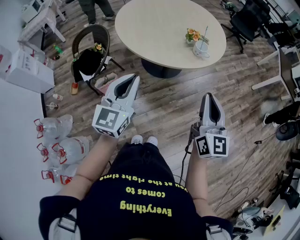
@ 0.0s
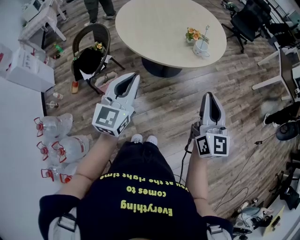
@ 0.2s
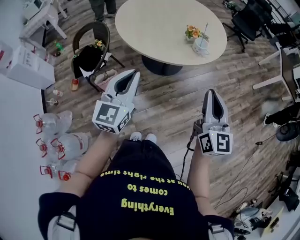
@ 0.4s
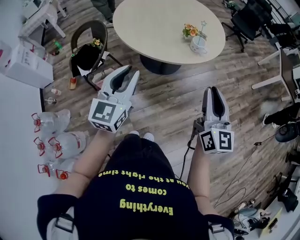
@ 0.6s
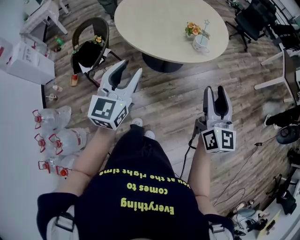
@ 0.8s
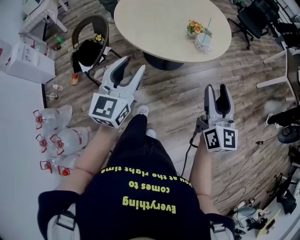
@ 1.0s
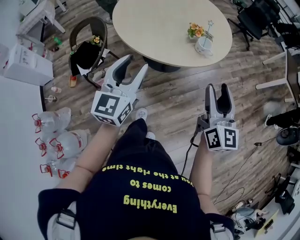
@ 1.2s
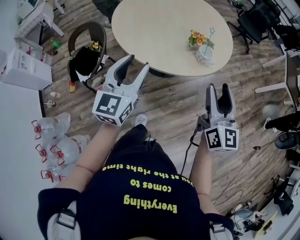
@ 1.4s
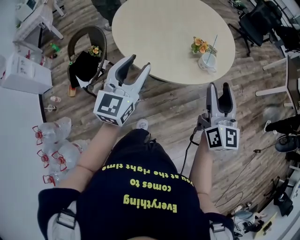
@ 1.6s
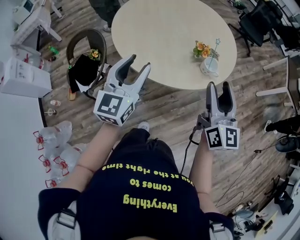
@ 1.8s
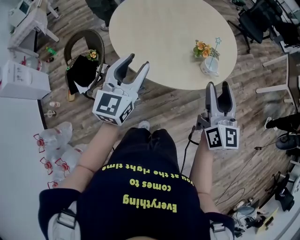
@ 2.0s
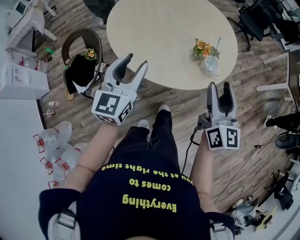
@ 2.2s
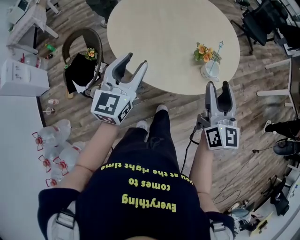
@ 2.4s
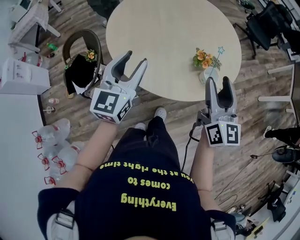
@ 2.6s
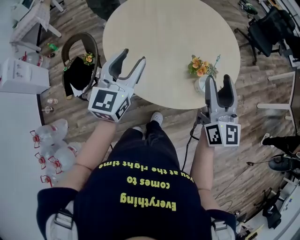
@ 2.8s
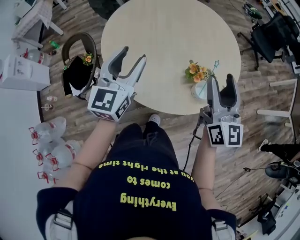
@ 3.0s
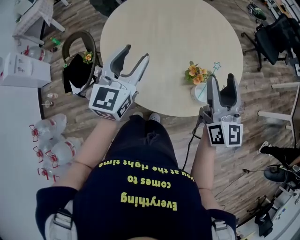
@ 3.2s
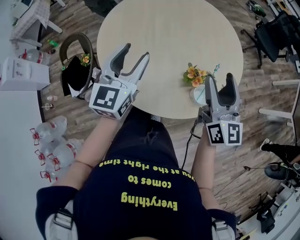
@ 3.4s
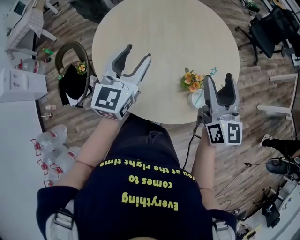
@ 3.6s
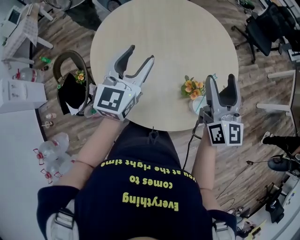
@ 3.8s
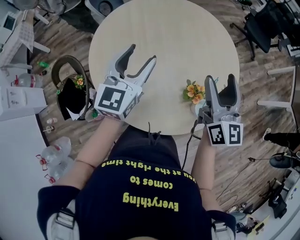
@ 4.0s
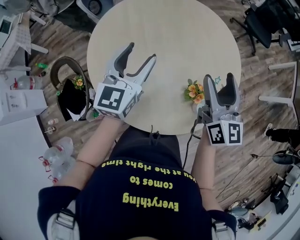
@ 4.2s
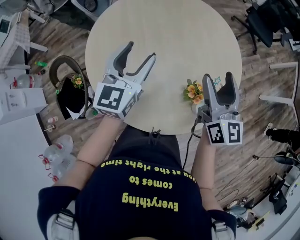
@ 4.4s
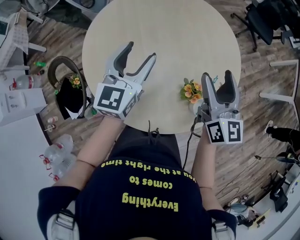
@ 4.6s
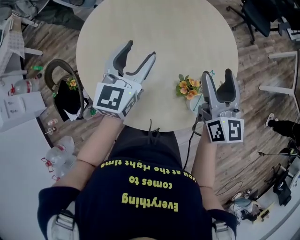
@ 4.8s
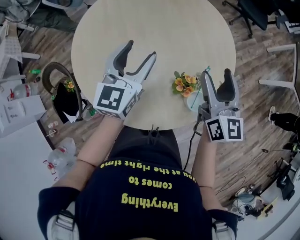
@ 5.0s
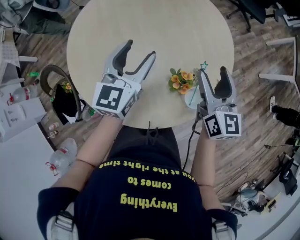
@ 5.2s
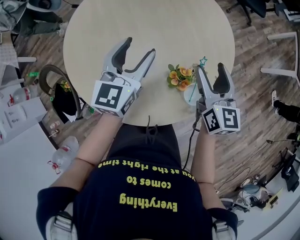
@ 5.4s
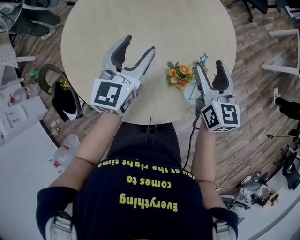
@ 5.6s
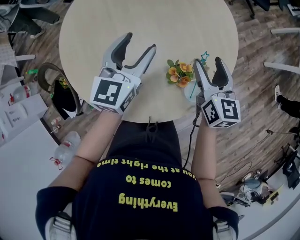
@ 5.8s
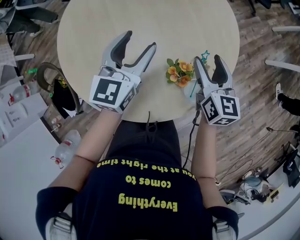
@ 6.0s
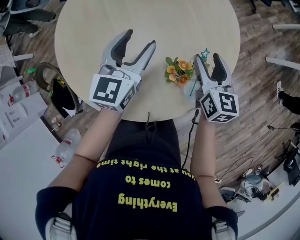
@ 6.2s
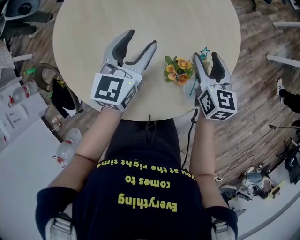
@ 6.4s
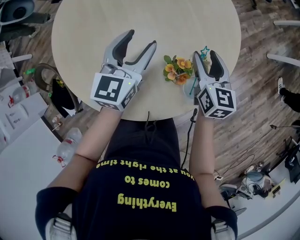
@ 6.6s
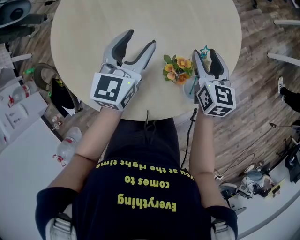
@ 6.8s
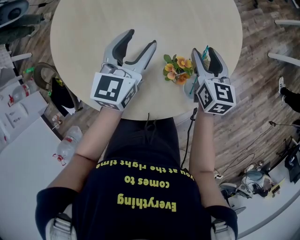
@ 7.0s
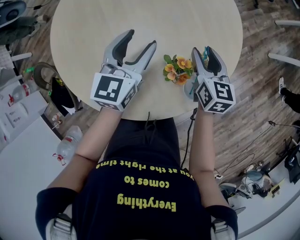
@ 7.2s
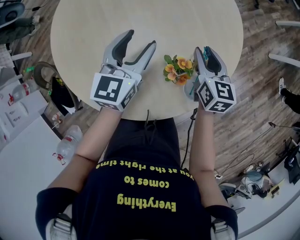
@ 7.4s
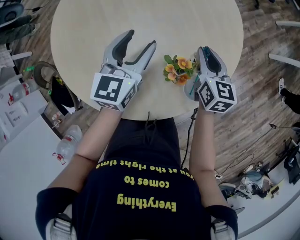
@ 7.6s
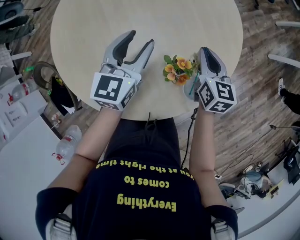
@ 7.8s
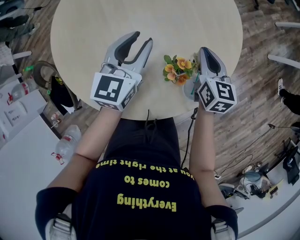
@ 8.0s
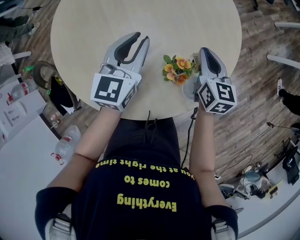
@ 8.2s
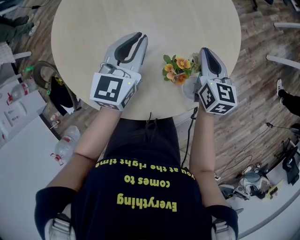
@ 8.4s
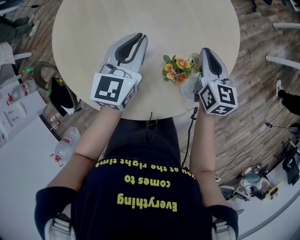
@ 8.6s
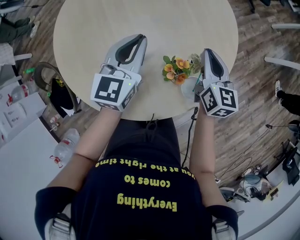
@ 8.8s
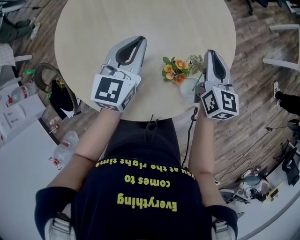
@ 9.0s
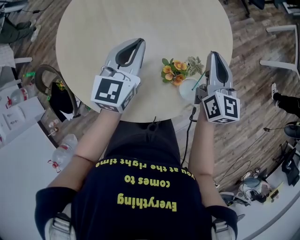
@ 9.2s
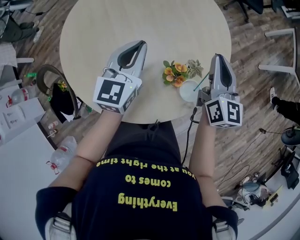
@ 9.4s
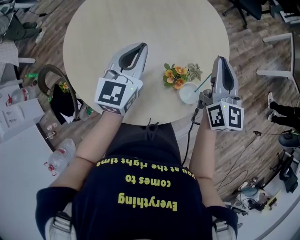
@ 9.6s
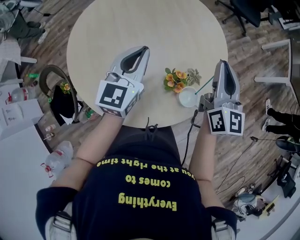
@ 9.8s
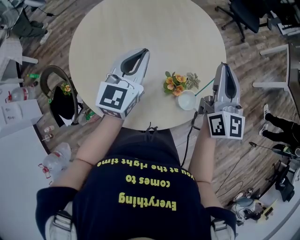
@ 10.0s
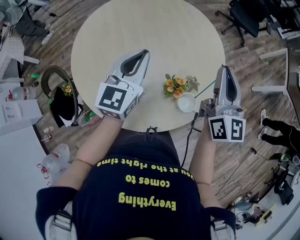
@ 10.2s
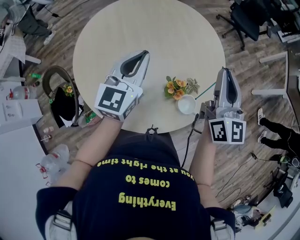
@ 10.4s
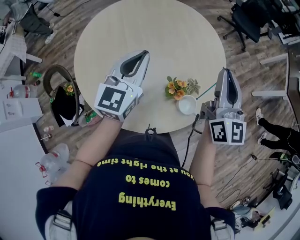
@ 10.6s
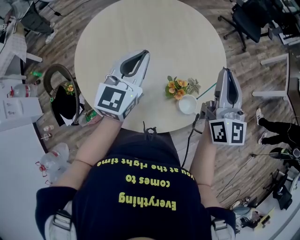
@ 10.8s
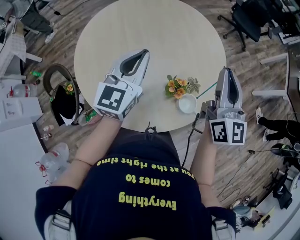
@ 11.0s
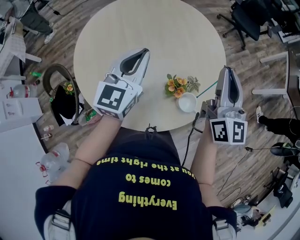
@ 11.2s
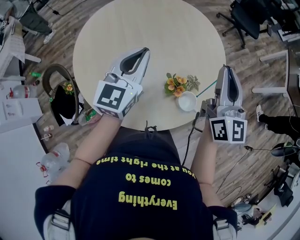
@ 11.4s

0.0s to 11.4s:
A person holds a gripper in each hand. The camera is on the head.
0.0s to 1.4s: Both grippers travel together forward, about 15 cm. The left gripper opens, while the right gripper opens its fingers.
1.4s to 2.8s: Both grippers travel together forward, some 25 cm.
2.8s to 4.2s: The two grippers go approximately 20 cm forward.
4.2s to 5.6s: The left gripper moves to the right and downward, approximately 15 cm; the right gripper goes some 15 cm downward and to the right.
5.6s to 7.2s: The right gripper heads downward, covering roughly 10 cm. The left gripper heads downward, covering some 5 cm.
7.2s to 8.6s: The right gripper closes up, while the left gripper closes up.
8.6s to 10.0s: The right gripper travels upward by approximately 20 cm, and rotates about 30 degrees. The left gripper heads upward, covering about 10 cm.
10.0s to 11.4s: The grippers move only a little.

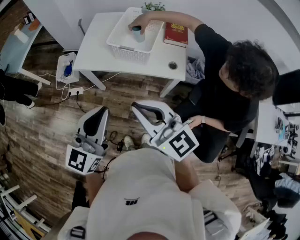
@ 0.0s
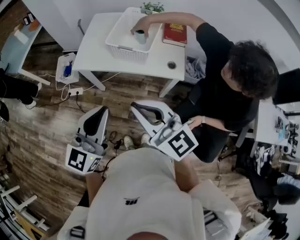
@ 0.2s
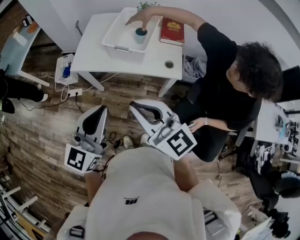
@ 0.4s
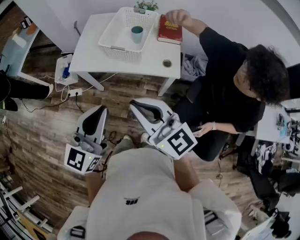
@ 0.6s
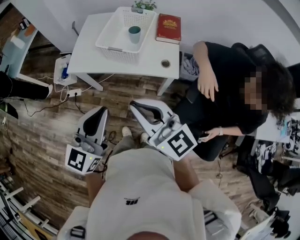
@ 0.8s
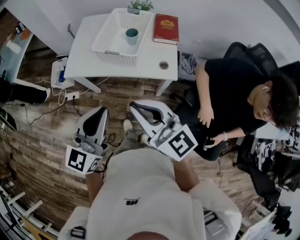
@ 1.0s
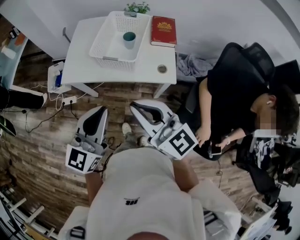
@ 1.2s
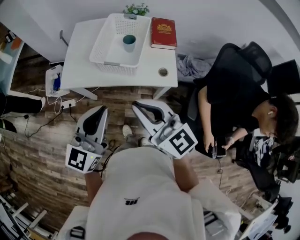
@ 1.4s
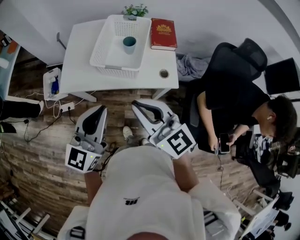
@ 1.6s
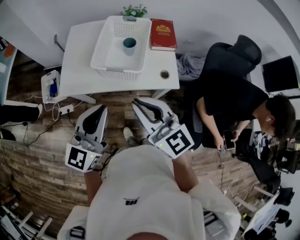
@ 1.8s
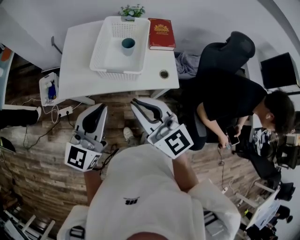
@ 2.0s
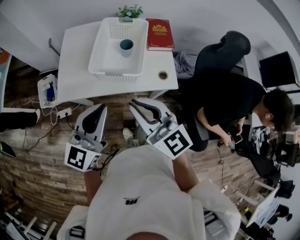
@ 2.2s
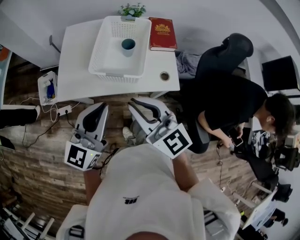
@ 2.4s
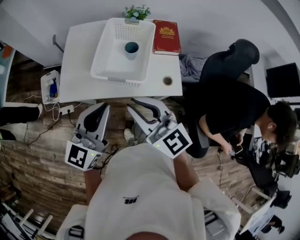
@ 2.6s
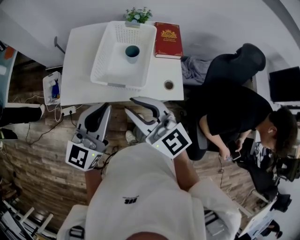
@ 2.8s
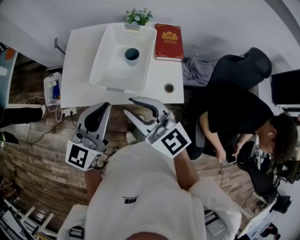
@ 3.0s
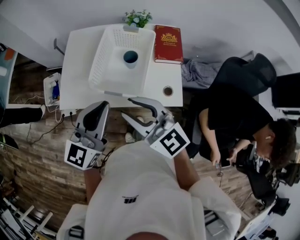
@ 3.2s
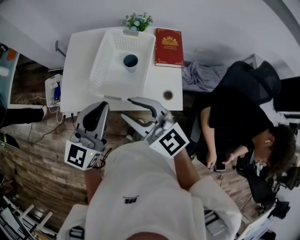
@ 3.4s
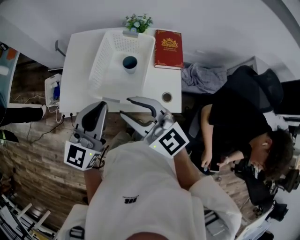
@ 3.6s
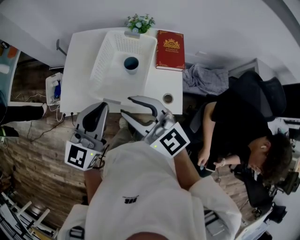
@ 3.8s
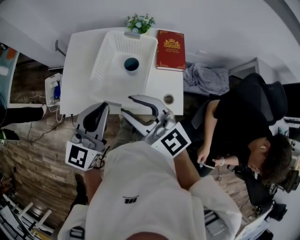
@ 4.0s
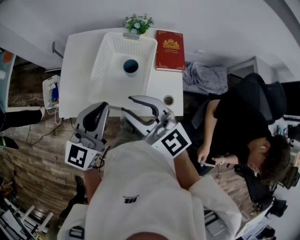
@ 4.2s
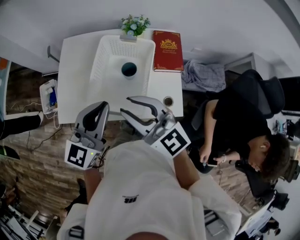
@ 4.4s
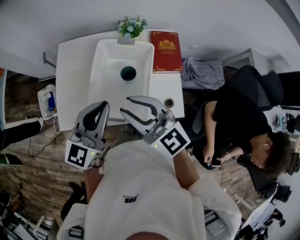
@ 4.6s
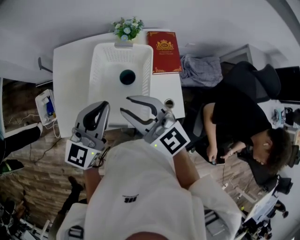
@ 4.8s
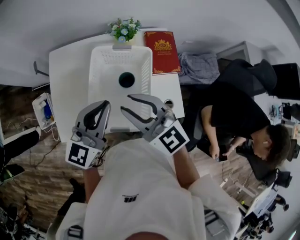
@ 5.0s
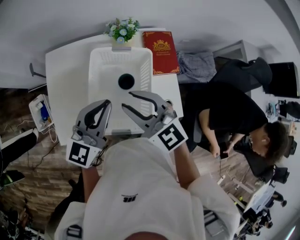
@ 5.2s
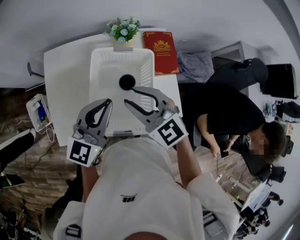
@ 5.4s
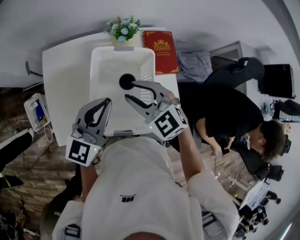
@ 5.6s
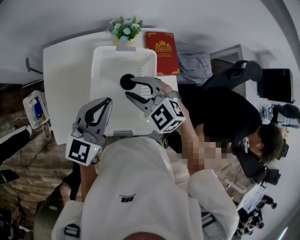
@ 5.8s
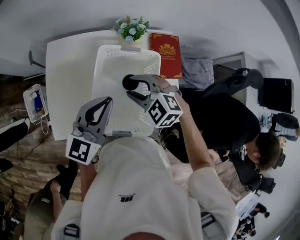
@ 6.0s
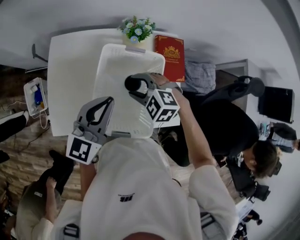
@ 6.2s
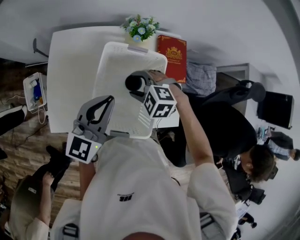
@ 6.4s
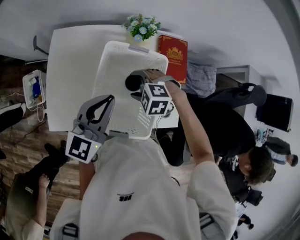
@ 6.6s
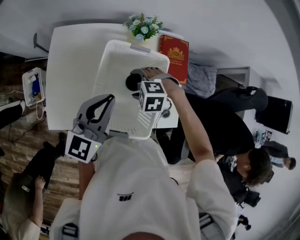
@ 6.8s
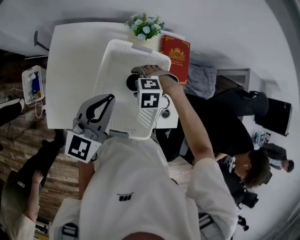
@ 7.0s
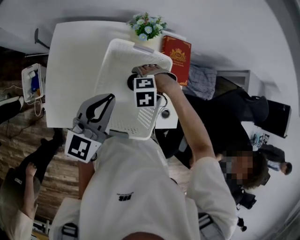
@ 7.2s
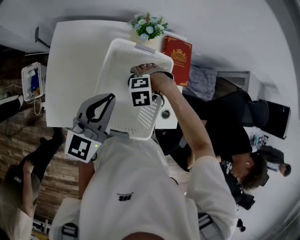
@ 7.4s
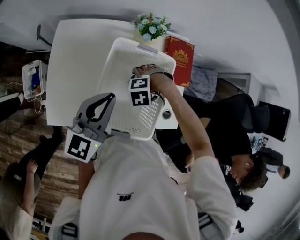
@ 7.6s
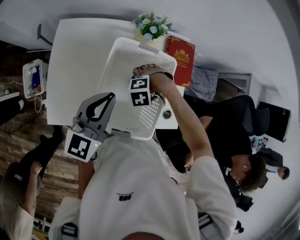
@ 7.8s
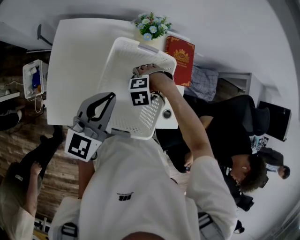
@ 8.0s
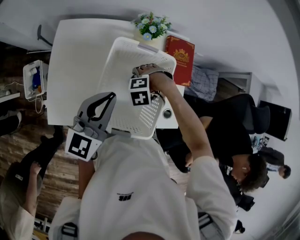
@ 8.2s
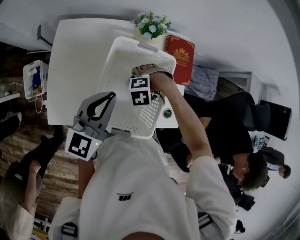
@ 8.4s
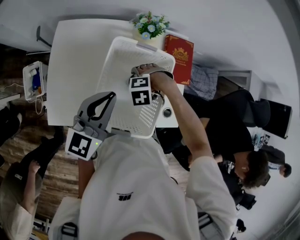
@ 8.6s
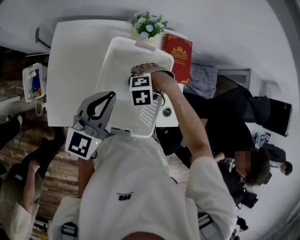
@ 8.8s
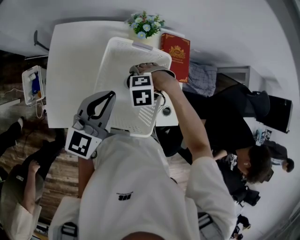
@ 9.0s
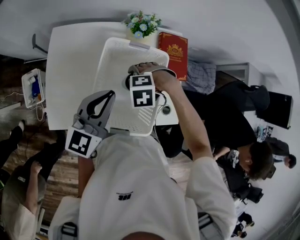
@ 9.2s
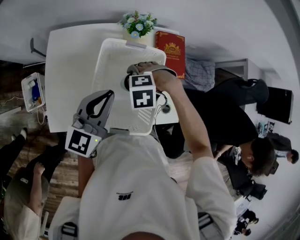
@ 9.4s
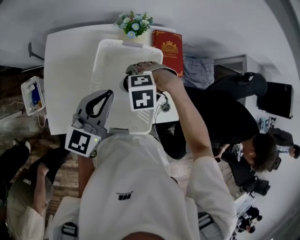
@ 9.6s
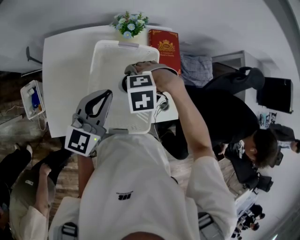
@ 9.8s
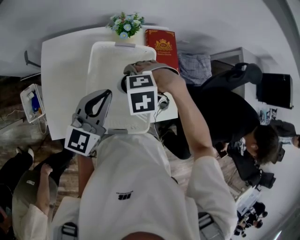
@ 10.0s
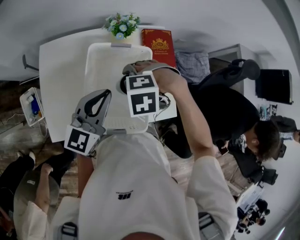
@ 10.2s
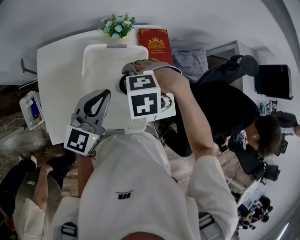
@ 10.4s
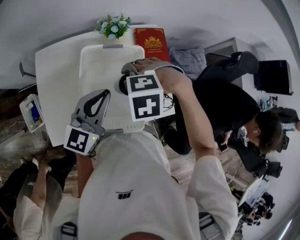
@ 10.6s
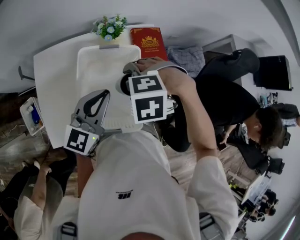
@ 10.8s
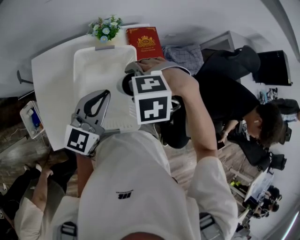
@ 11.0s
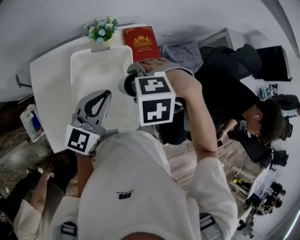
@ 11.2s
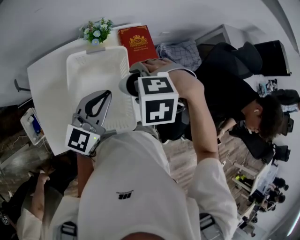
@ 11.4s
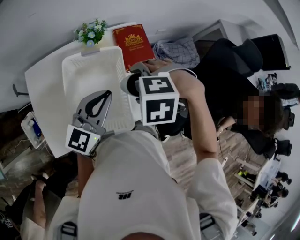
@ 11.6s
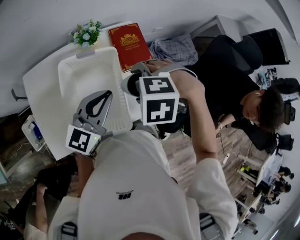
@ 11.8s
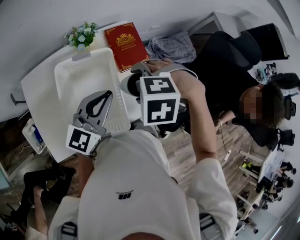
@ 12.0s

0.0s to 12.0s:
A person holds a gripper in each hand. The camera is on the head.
0.0s to 1.6s: The two grippers go roughly 15 cm forward.
1.6s to 3.0s: Both grippers travel together forward, some 15 cm.
3.0s to 4.4s: Both grippers move forward, approximately 10 cm.
4.4s to 6.0s: The right gripper heads forward and downward, covering about 25 cm, and tilts its fingers about 50 degrees downward. Meanwhile the left gripper goes roughly 15 cm forward and downward.
6.0s to 7.6s: The right gripper shifts roughly 15 cm downward, tips its fingers downward by about 40 degrees, and opens up.
7.6s to 9.0s: There are only small adjustments of the grippers.
9.0s to 10.4s: The right gripper is displaced upward by approximately 10 cm.
10.4s to 12.0s: The right gripper shifts by roughly 15 cm. Meanwhile the left gripper ends up some 10 cm from where it was.
